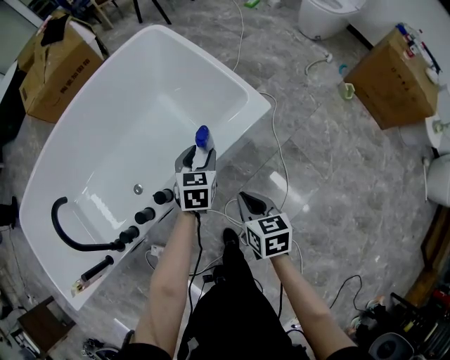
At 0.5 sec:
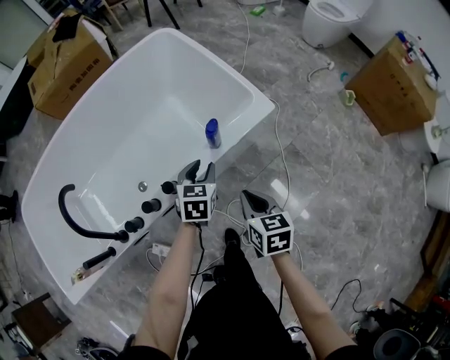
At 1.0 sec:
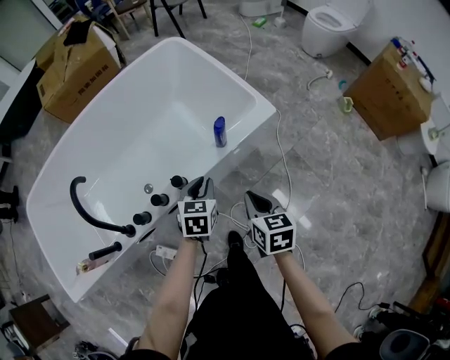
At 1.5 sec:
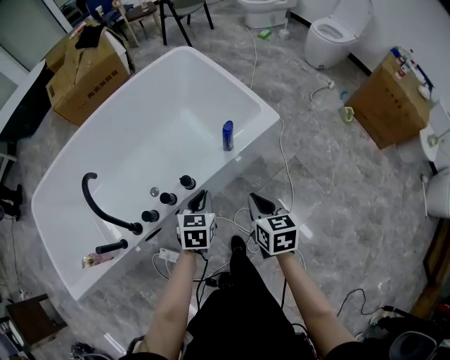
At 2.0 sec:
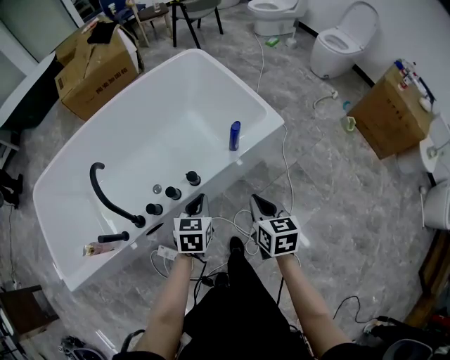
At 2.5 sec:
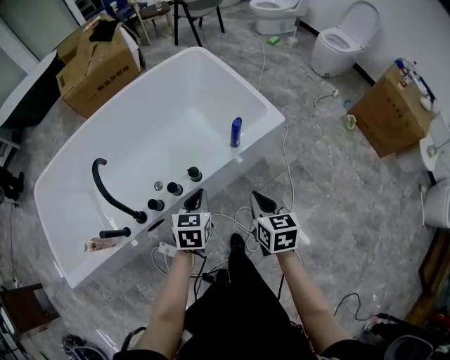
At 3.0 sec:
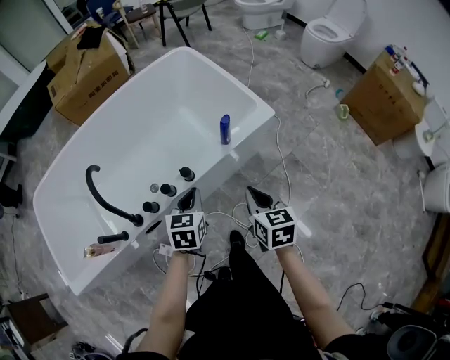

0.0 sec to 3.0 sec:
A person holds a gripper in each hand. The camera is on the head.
0.0 sec to 1.5 sec: The right gripper shifts roughly 10 cm upward and backward. The left gripper goes roughly 20 cm backward and to the left, and closes its fingers.
1.5 sec to 3.0 sec: The left gripper shifts by about 5 cm.

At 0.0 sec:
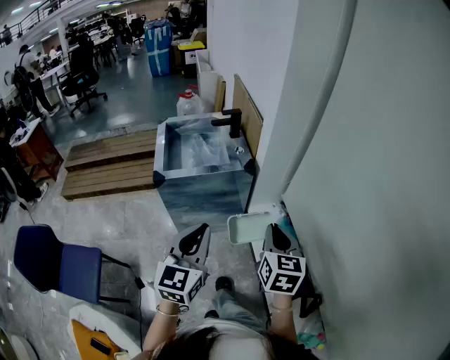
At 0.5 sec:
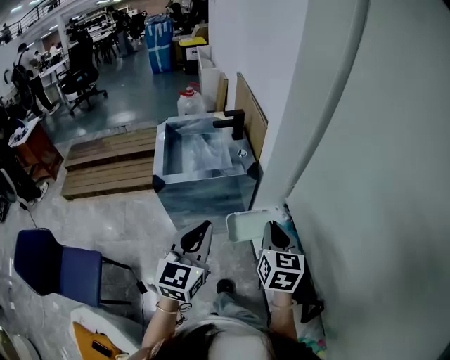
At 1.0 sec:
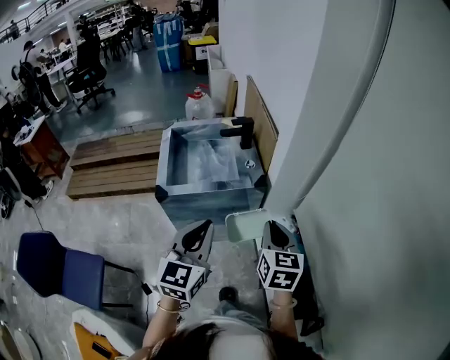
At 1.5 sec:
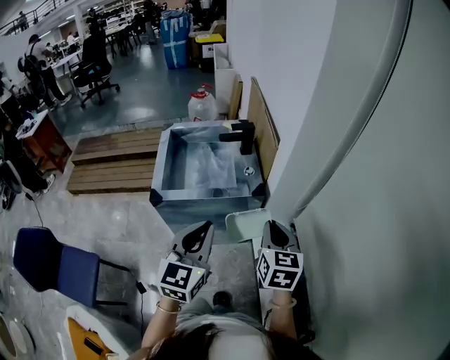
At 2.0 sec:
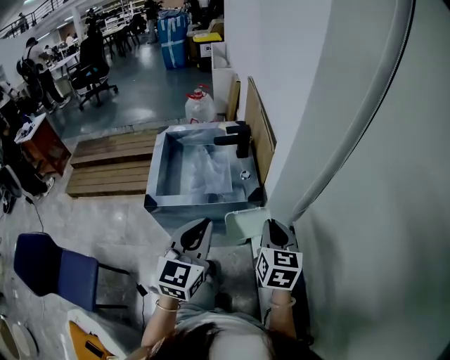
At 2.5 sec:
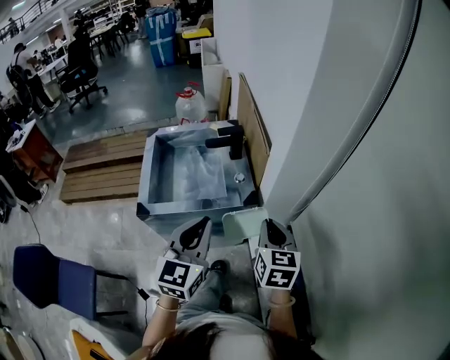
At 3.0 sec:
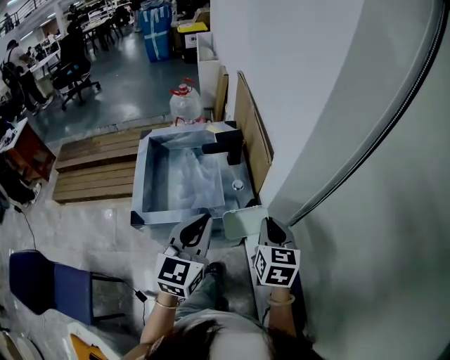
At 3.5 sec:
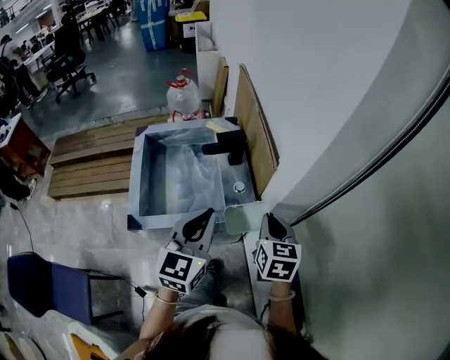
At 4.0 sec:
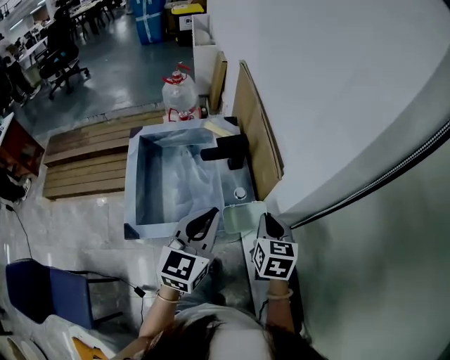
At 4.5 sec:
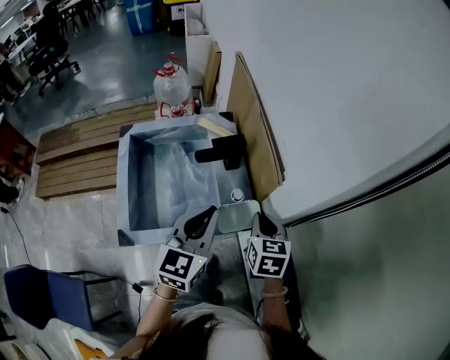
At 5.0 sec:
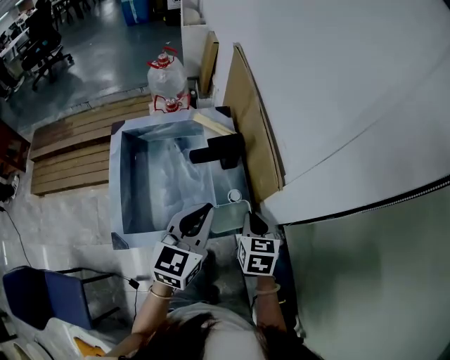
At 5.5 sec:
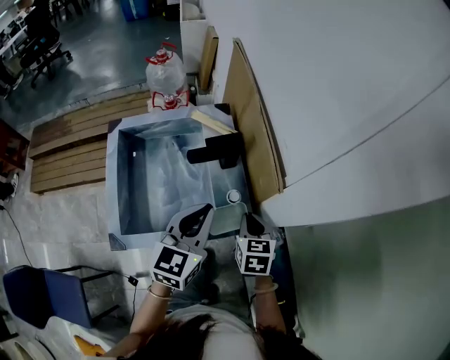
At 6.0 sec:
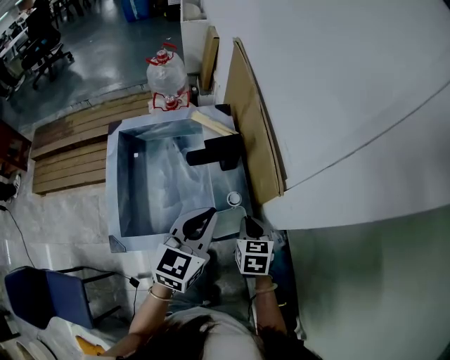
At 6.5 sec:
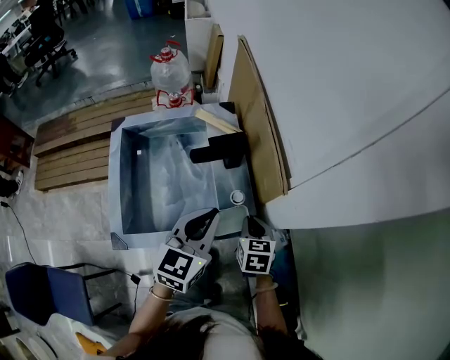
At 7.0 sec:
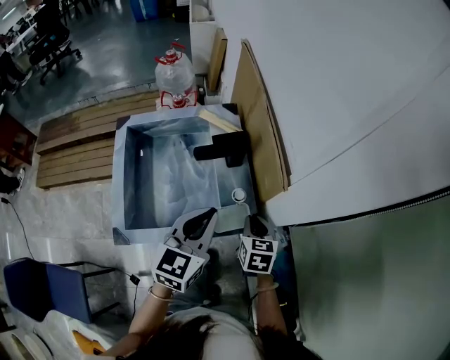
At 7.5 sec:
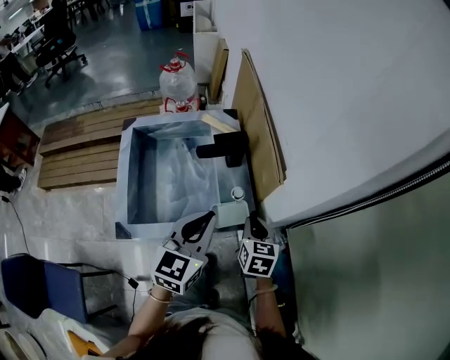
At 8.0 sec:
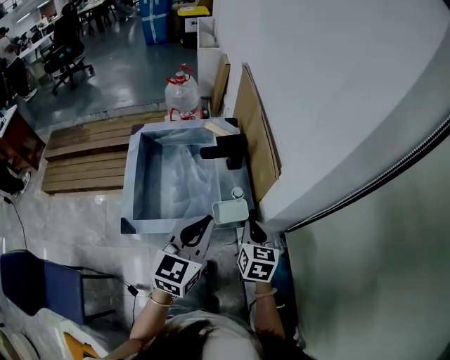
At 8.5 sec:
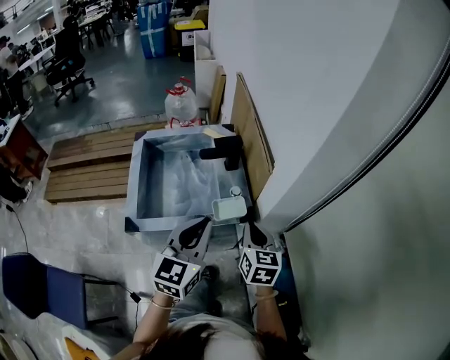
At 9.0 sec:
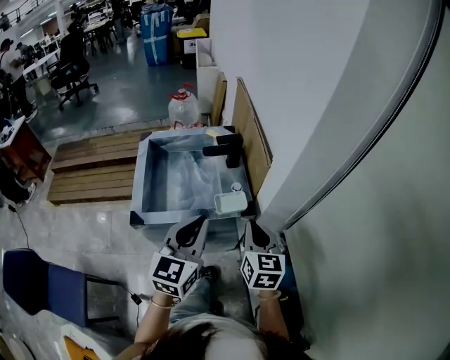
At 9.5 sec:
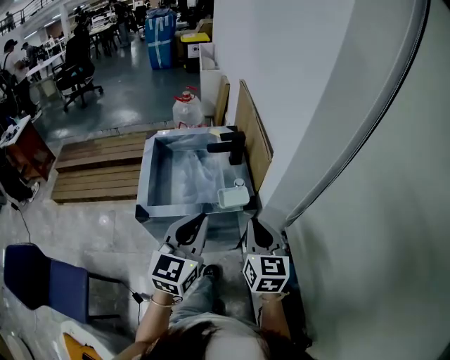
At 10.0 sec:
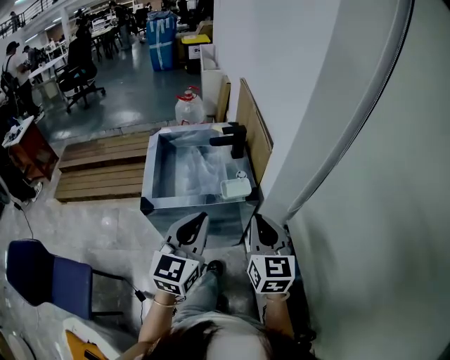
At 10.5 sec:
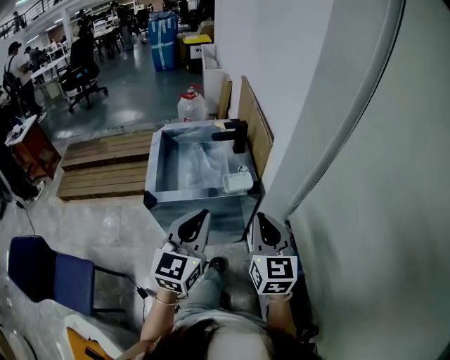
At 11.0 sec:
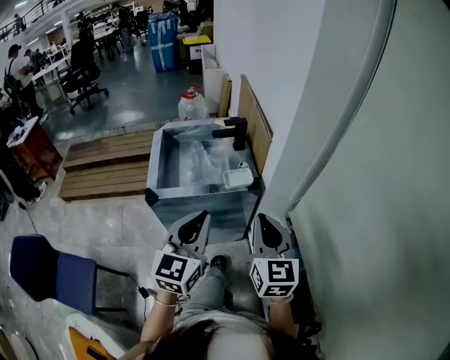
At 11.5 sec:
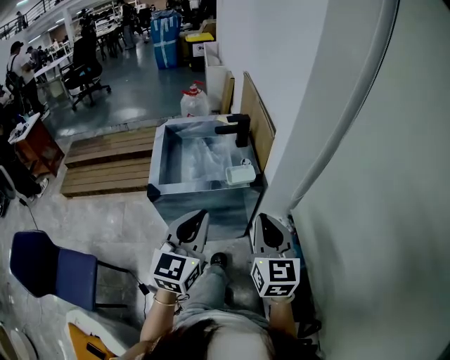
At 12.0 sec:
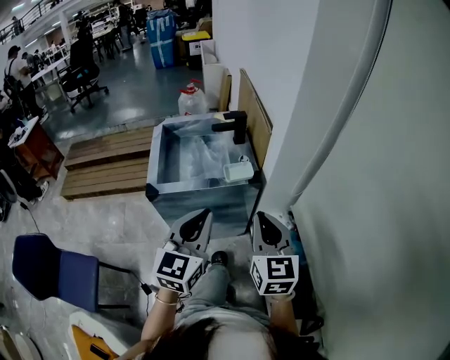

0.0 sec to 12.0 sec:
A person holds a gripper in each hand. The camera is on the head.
0.0 sec to 2.0 sec: Both grippers move forward, approximately 20 cm.
2.0 sec to 4.0 sec: Both grippers travel together forward, about 20 cm.
4.0 sec to 6.0 sec: The left gripper travels forward and downward by about 10 cm; the right gripper is displaced downward by roughly 15 cm.
6.0 sec to 8.0 sec: The right gripper moves upward and backward, roughly 10 cm, while the left gripper goes about 10 cm backward.
8.0 sec to 10.0 sec: The left gripper heads backward, covering roughly 20 cm. The right gripper heads backward and upward, covering roughly 25 cm, and swivels approximately 30 degrees.
10.0 sec to 12.0 sec: Both grippers travel together backward, approximately 5 cm.

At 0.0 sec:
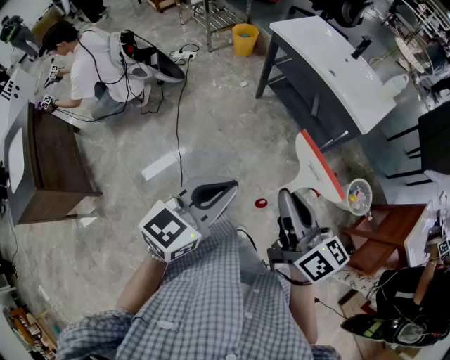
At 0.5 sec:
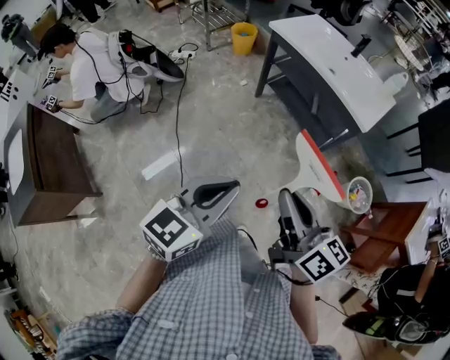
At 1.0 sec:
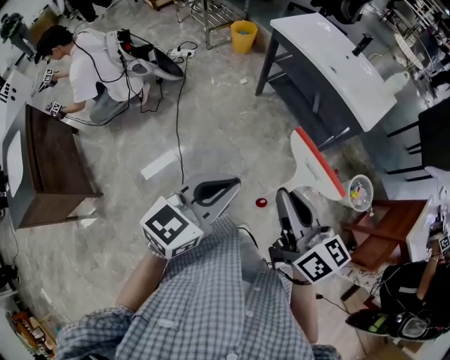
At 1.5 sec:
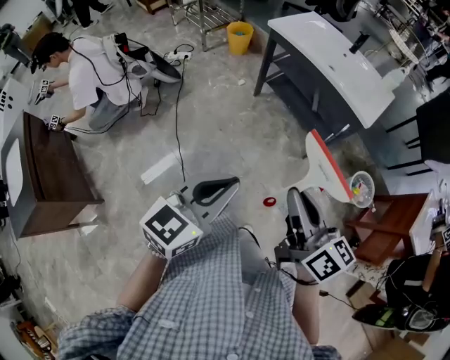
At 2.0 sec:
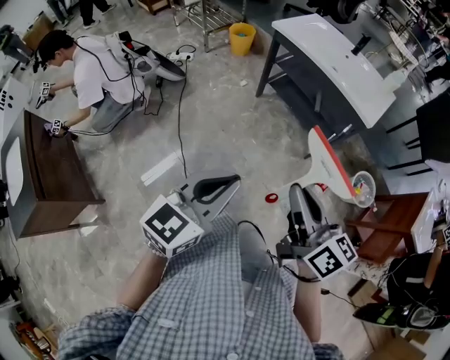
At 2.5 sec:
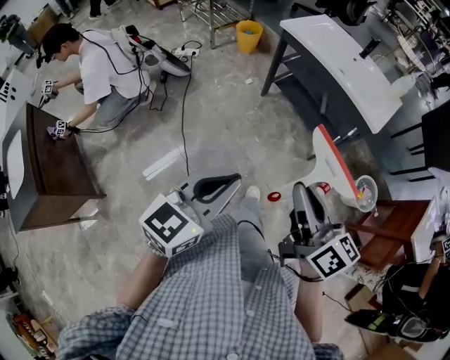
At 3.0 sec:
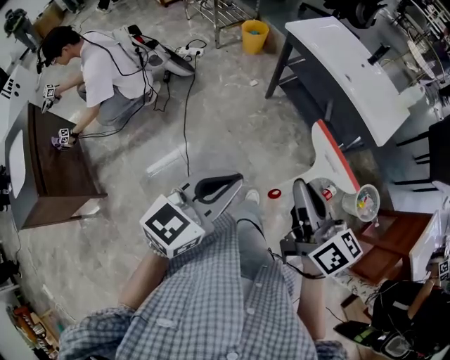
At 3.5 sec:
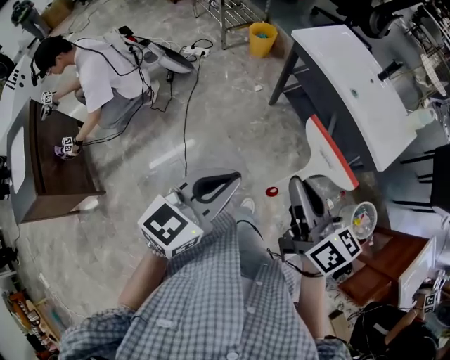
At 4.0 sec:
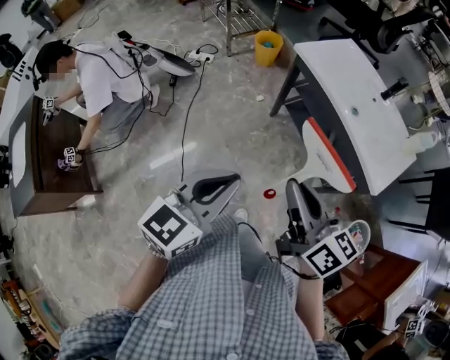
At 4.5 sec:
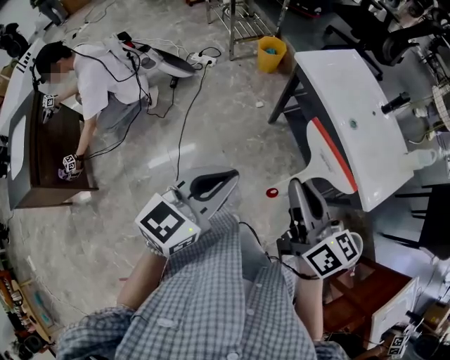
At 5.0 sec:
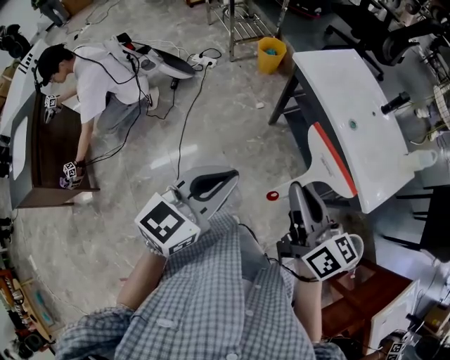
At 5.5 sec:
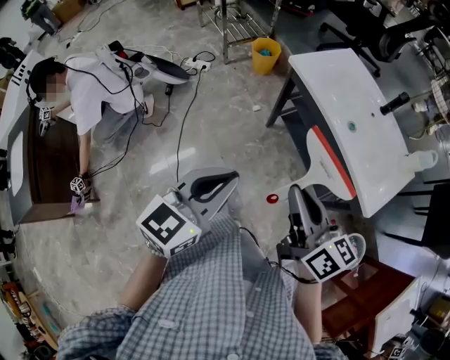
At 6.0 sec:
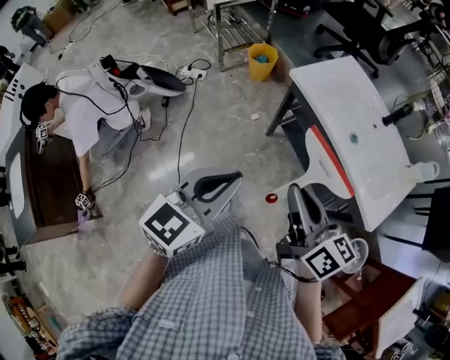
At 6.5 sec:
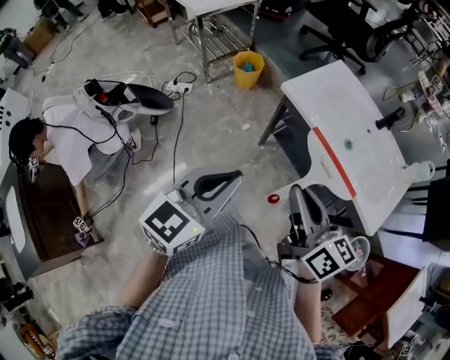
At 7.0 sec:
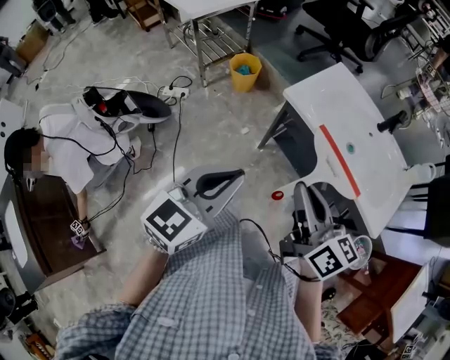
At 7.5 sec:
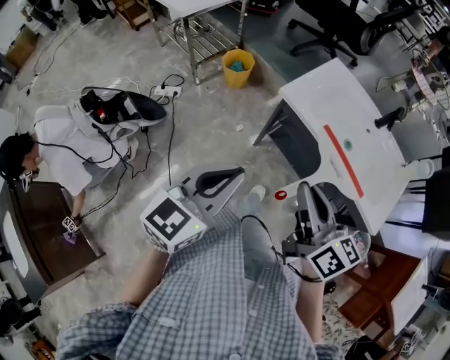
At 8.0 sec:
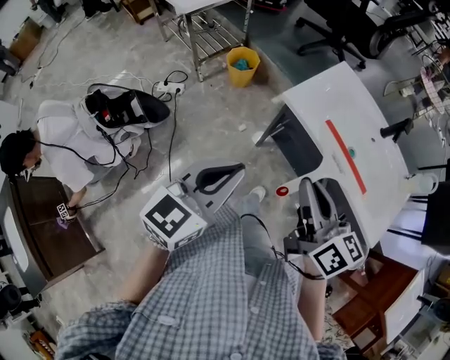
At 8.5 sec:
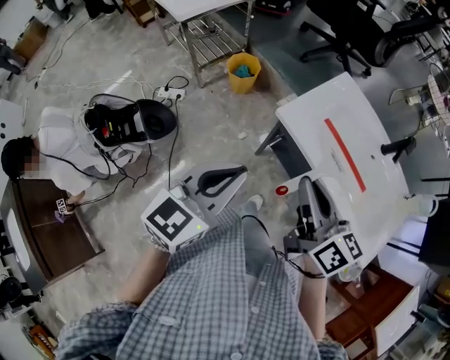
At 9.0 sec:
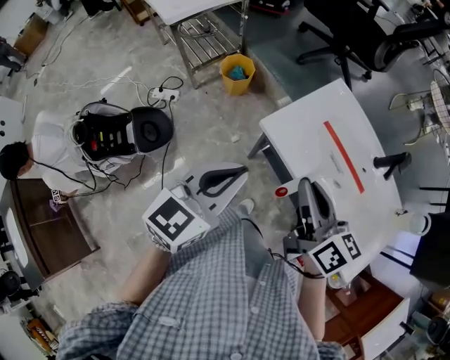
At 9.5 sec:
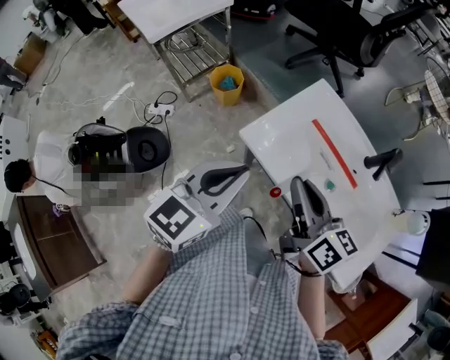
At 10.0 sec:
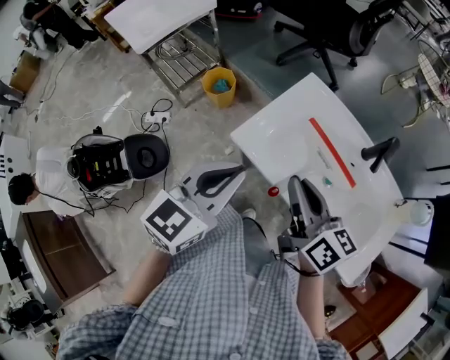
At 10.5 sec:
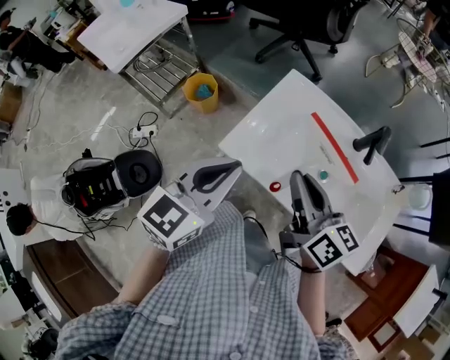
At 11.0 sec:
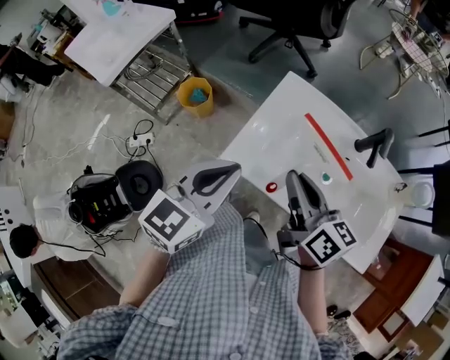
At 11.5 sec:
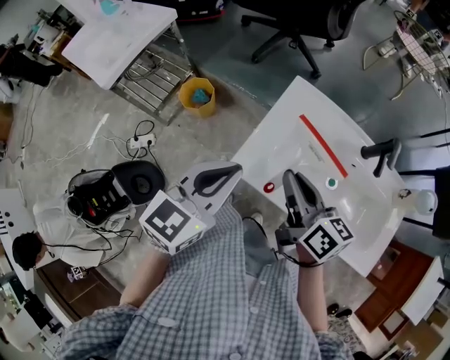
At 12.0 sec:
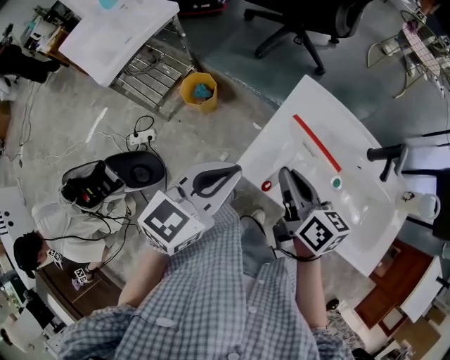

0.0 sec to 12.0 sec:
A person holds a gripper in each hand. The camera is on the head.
0.0 sec to 2.0 sec: The left gripper goes about 5 cm to the left.
2.0 sec to 4.0 sec: The grippers both shift forward by about 25 cm.
4.0 sec to 6.0 sec: Both grippers move forward, about 15 cm.
6.0 sec to 8.0 sec: Both grippers move forward, approximately 15 cm.
8.0 sec to 10.0 sec: The grippers both shift forward and to the right by roughly 25 cm.
10.0 sec to 12.0 sec: The right gripper is displaced forward, to the left and downward by some 15 cm, while the left gripper is displaced forward and to the left by some 15 cm.
